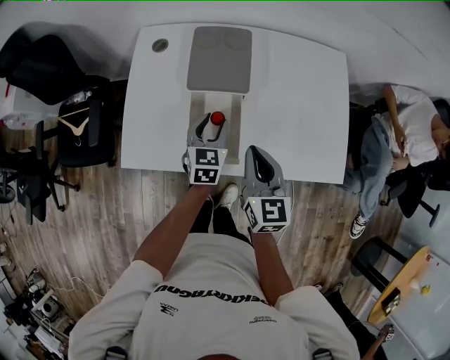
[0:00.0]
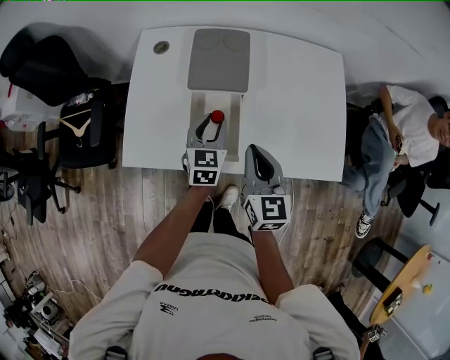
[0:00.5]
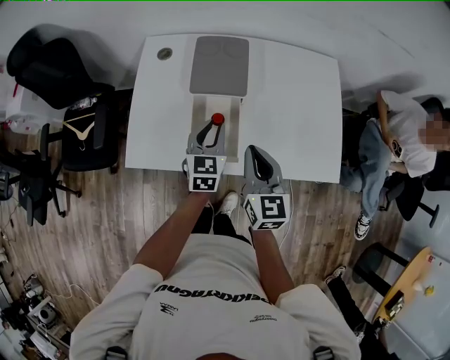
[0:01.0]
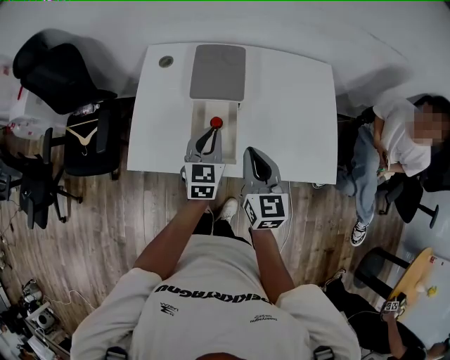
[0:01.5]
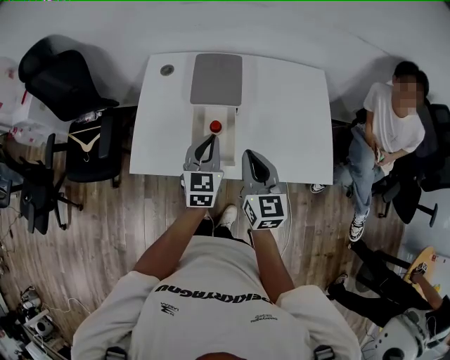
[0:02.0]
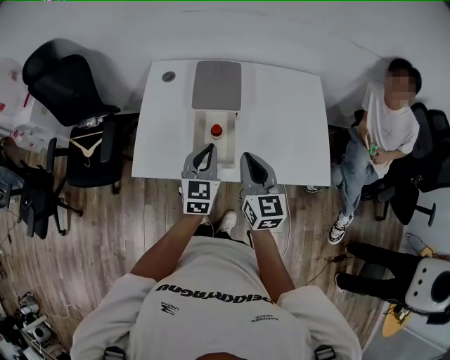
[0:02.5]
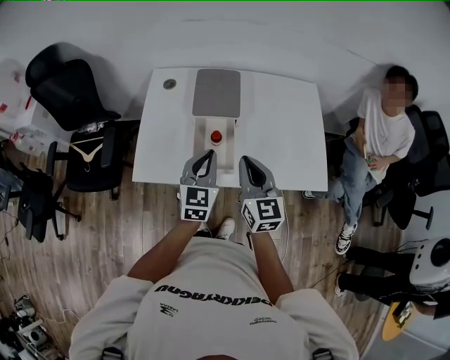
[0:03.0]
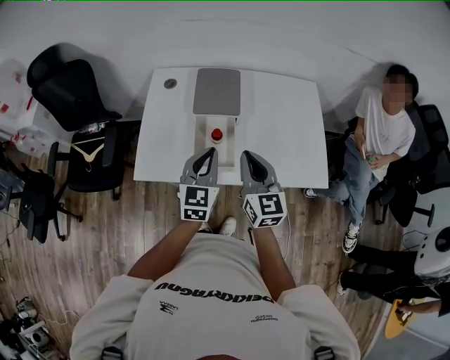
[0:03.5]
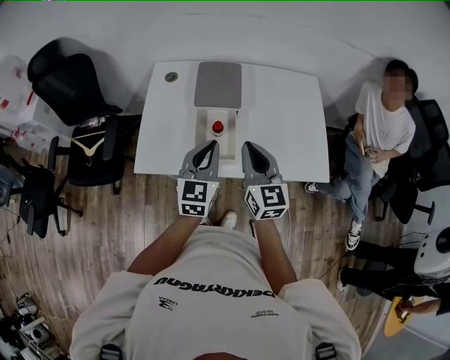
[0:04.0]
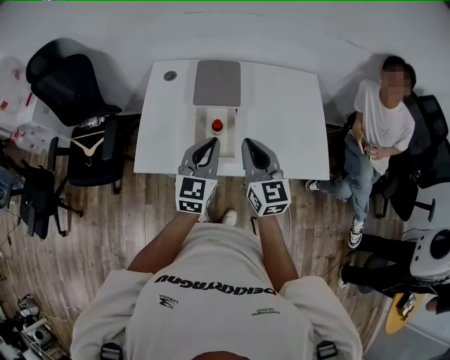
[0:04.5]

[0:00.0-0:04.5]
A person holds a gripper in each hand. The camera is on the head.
0:00.0 to 0:02.0: The right gripper goes approximately 5 cm upward; the left gripper is displaced upward and backward by roughly 15 cm, and closes up.
0:02.0 to 0:04.5: The left gripper is displaced upward by some 5 cm.

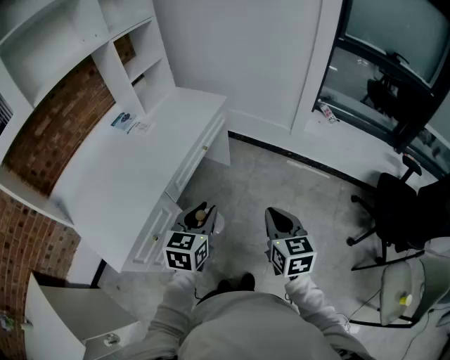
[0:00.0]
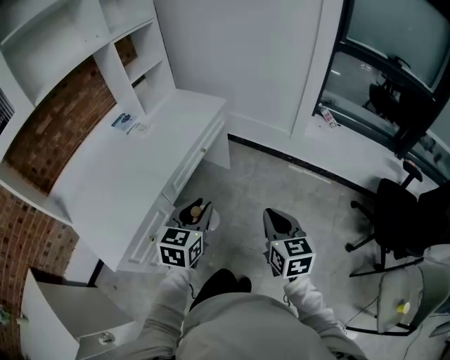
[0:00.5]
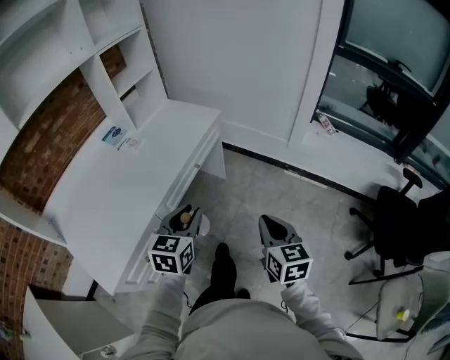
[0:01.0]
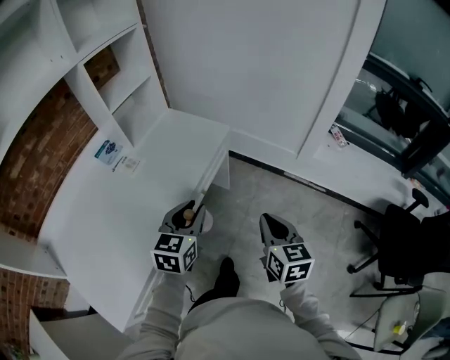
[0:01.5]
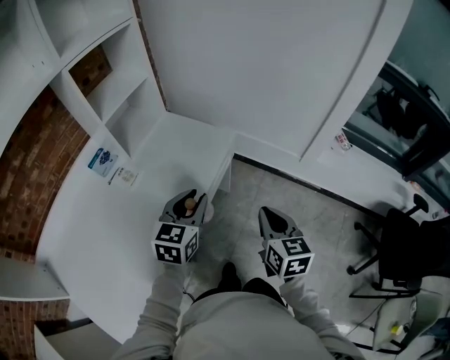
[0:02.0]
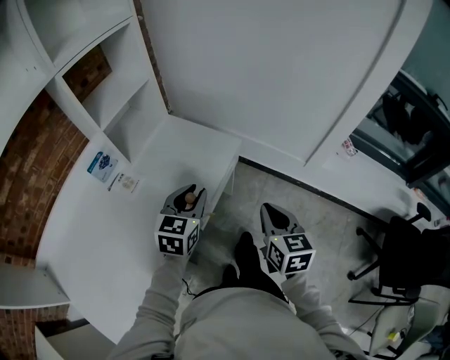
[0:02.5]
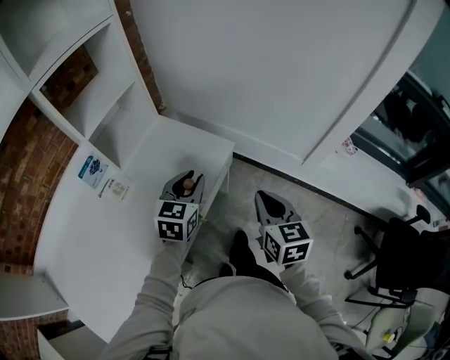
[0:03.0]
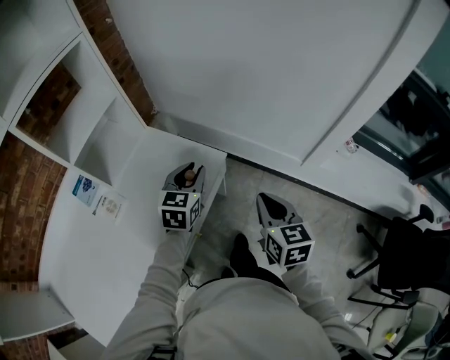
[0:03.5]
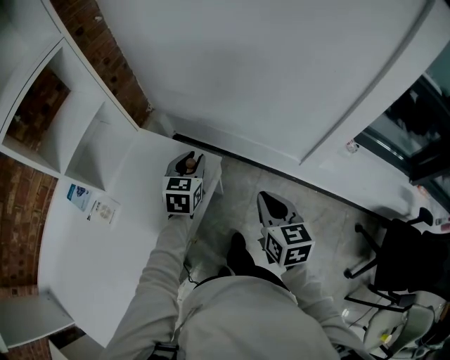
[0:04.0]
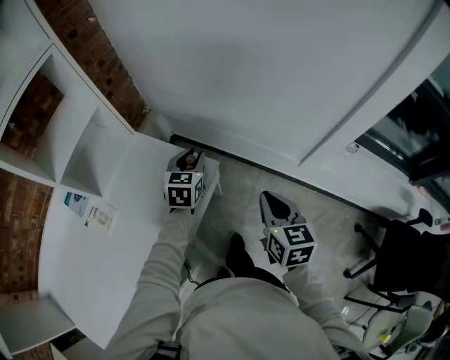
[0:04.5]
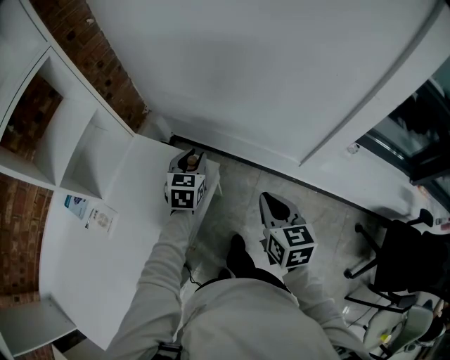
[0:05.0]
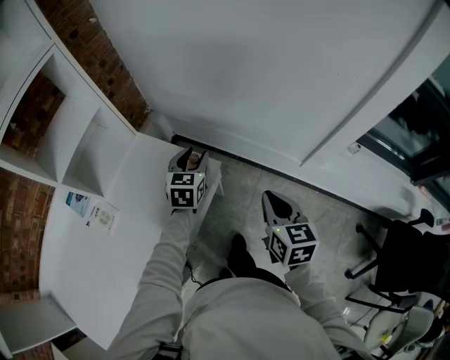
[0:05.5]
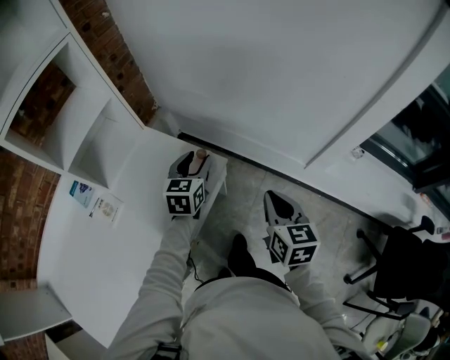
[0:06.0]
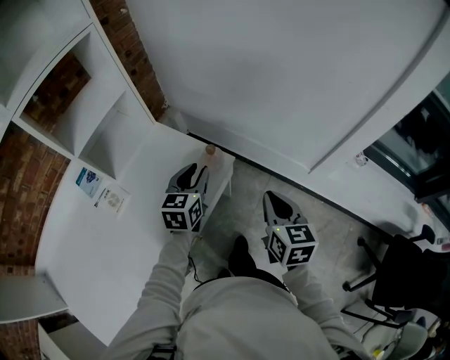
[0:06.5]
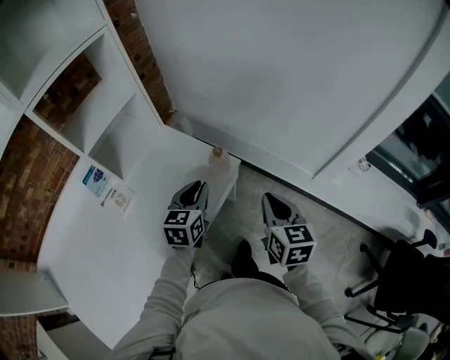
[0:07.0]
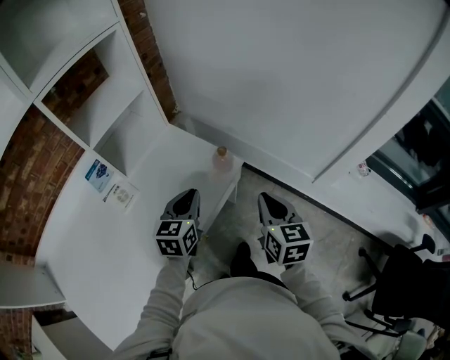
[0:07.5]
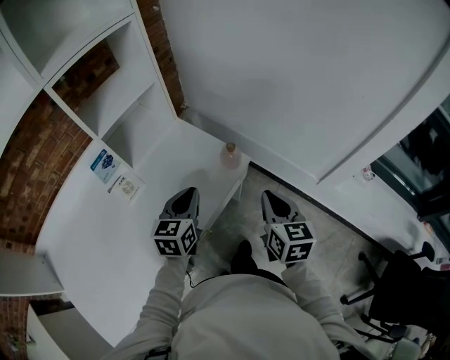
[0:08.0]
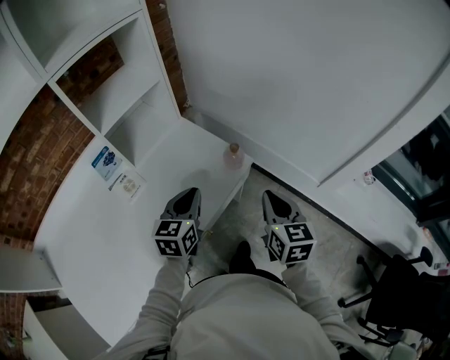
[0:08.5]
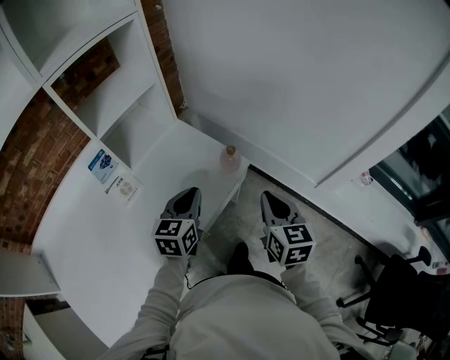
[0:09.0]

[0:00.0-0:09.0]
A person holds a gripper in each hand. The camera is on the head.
0:00.0 to 0:02.0: The grippers both shift forward by about 35 cm.
0:02.0 to 0:04.5: The grippers both shift forward by roughly 30 cm.
0:04.5 to 0:07.0: The left gripper is displaced backward by about 15 cm. Meanwhile the right gripper shifts by approximately 5 cm.
0:07.0 to 0:09.0: The left gripper travels to the left by roughly 5 cm.

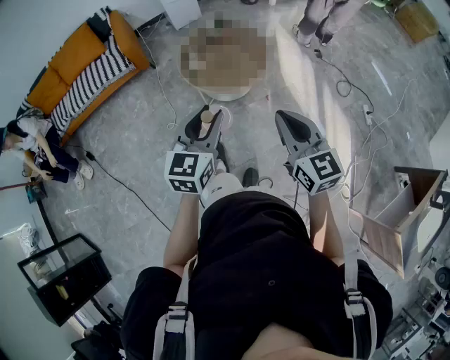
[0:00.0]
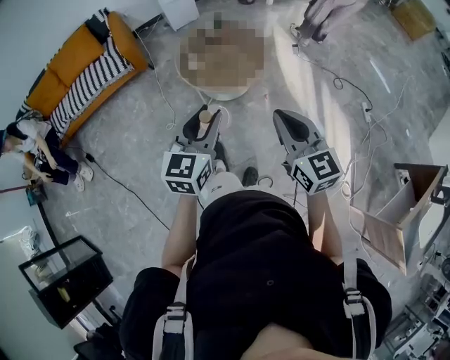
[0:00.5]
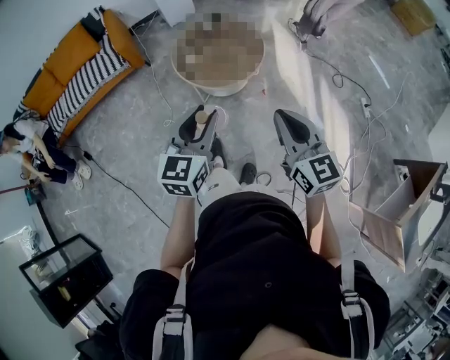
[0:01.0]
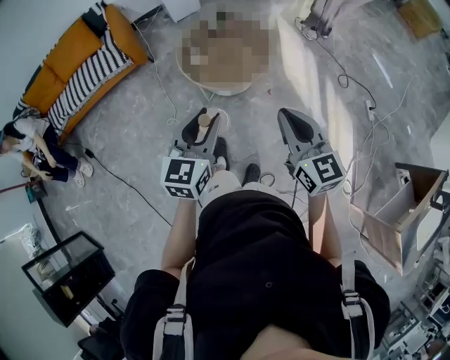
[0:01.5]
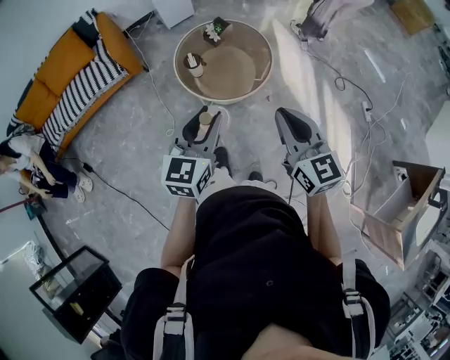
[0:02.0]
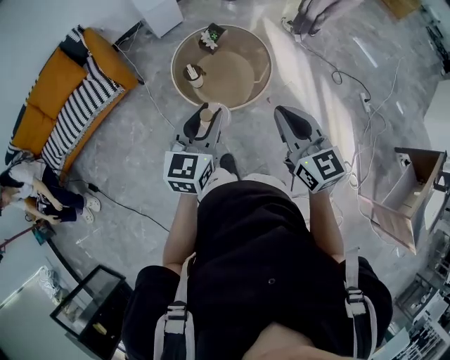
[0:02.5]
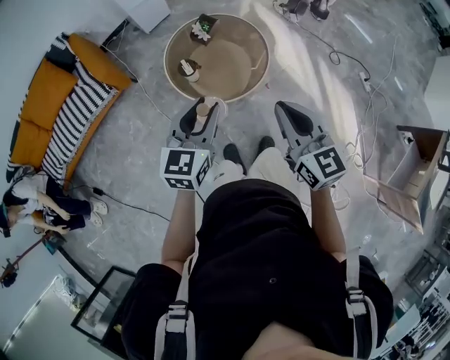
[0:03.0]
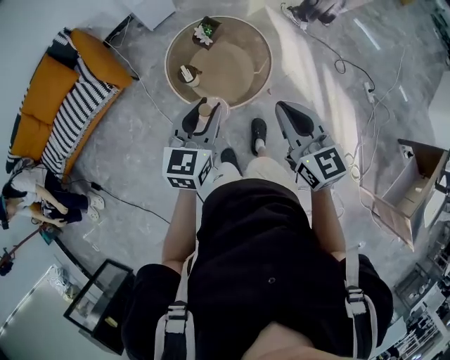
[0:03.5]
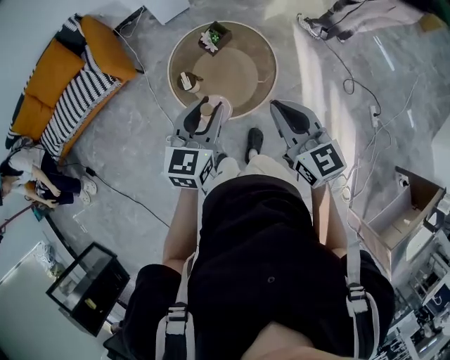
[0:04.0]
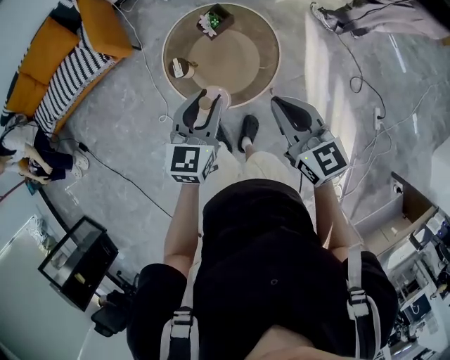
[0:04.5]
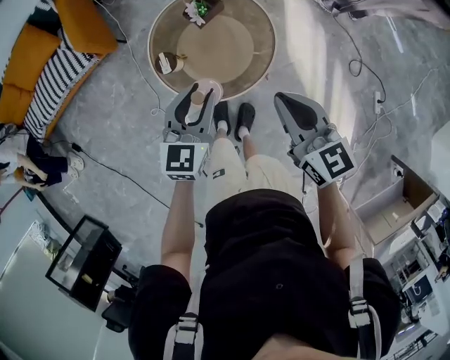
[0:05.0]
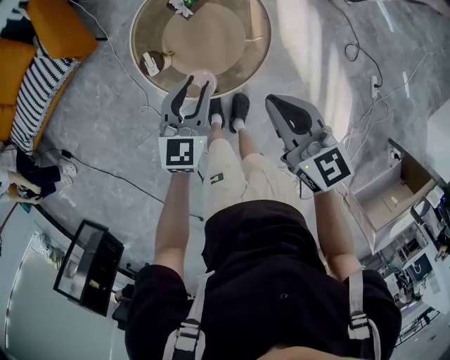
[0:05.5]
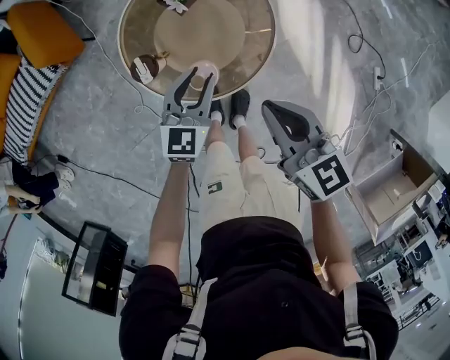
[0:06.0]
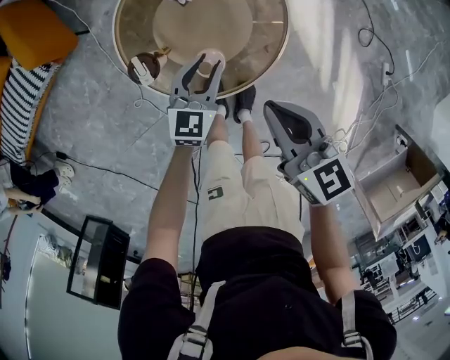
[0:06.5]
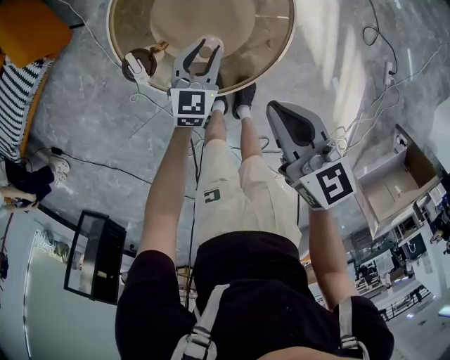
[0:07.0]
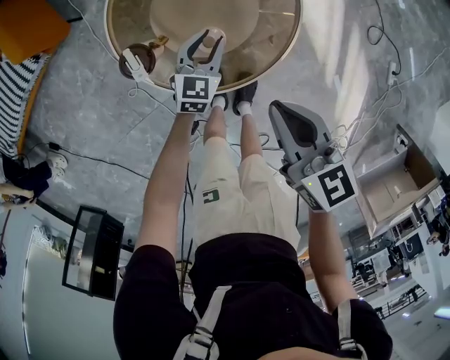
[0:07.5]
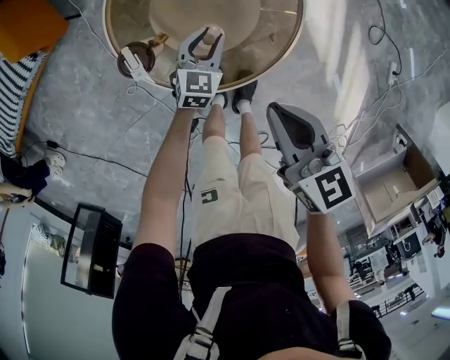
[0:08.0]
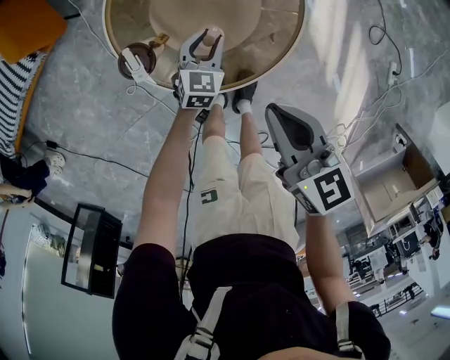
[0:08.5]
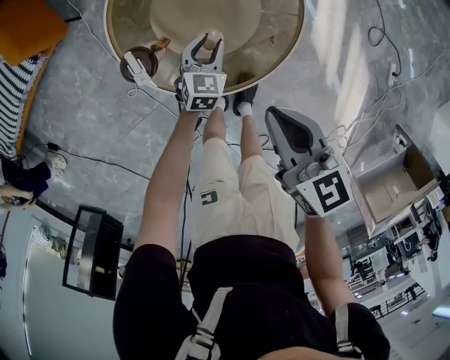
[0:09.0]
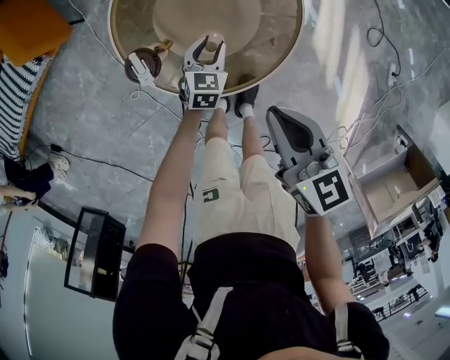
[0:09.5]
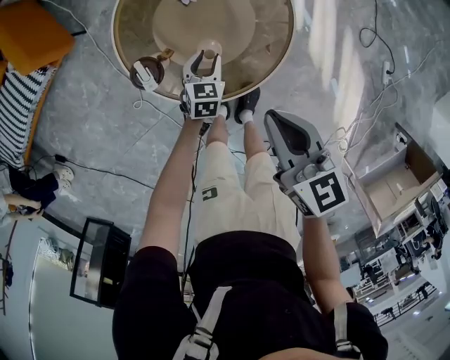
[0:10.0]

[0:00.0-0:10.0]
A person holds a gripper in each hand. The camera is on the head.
0:00.0 to 0:02.0: The grippers both shift forward and to the left by approximately 10 cm.
0:02.0 to 0:04.0: Both grippers travel together forward, about 20 cm.
0:04.0 to 0:06.0: The grippers both shift downward and forward by approximately 25 cm.
0:06.0 to 0:08.0: The right gripper travels downward by some 10 cm; the left gripper shifts approximately 25 cm downward.
0:08.0 to 0:10.0: The grippers stay close to where they were, moving slightly.

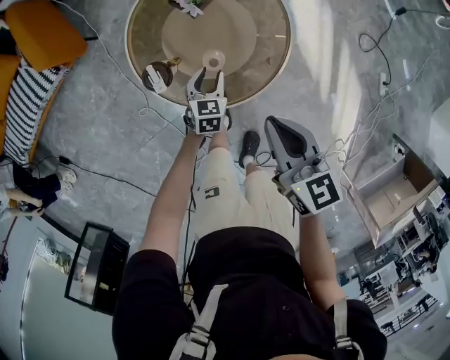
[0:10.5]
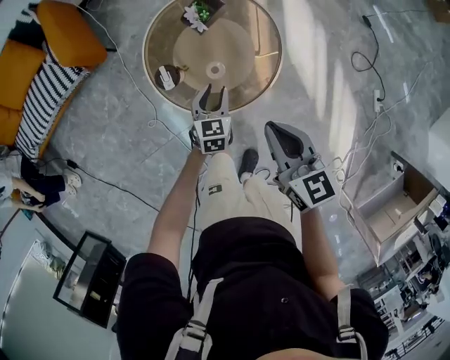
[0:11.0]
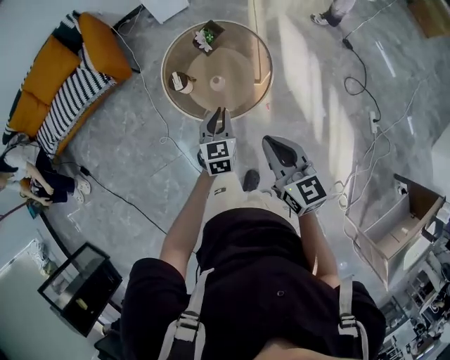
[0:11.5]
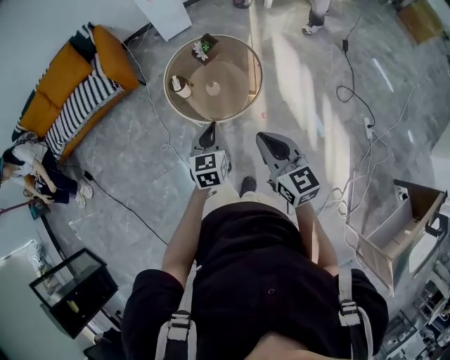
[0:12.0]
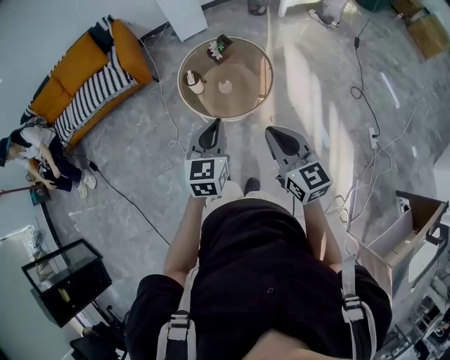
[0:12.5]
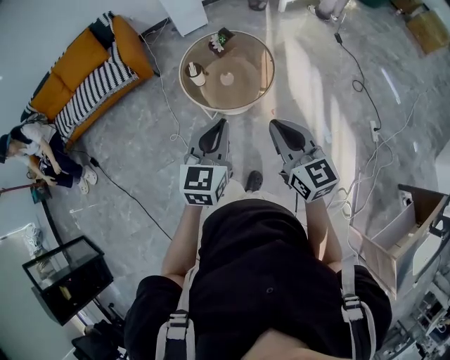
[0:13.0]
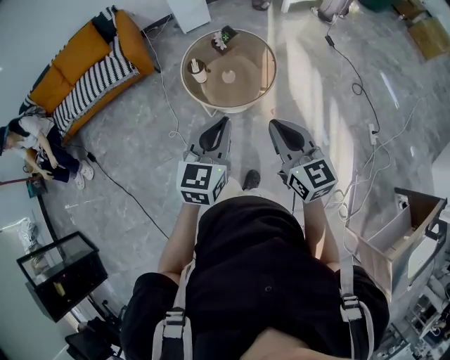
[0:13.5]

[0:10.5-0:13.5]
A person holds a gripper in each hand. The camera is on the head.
0:10.5 to 0:12.0: The left gripper moves upward and backward, roughly 40 cm, swivels about 20 degrees, and closes its fingers; the right gripper moves backward and upward, roughly 30 cm, and swivels approximately 20 degrees.
0:12.0 to 0:13.5: The left gripper moves upward and backward, some 20 cm. The right gripper is displaced backward and upward by some 10 cm.
